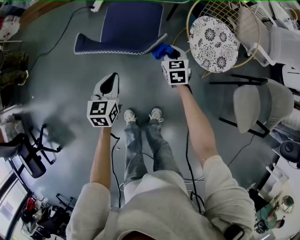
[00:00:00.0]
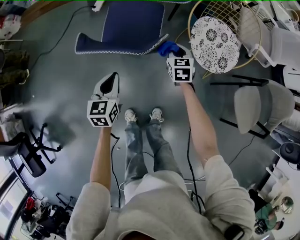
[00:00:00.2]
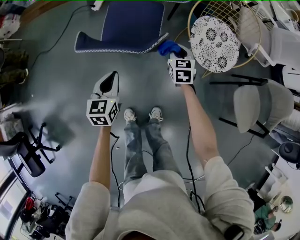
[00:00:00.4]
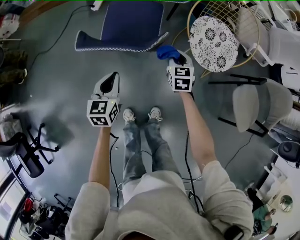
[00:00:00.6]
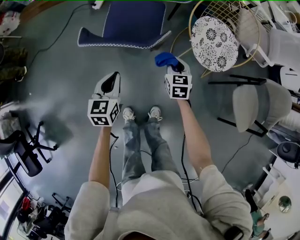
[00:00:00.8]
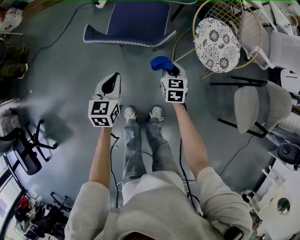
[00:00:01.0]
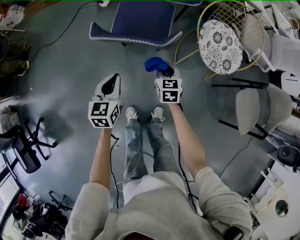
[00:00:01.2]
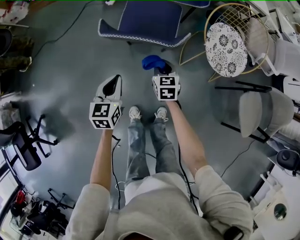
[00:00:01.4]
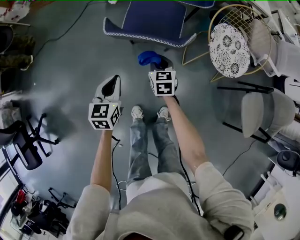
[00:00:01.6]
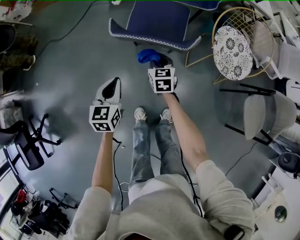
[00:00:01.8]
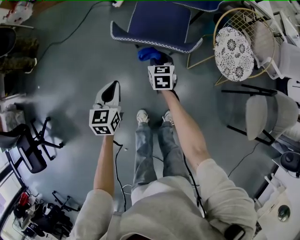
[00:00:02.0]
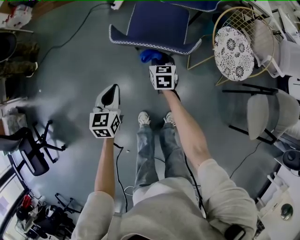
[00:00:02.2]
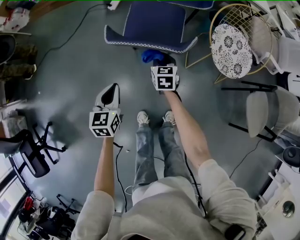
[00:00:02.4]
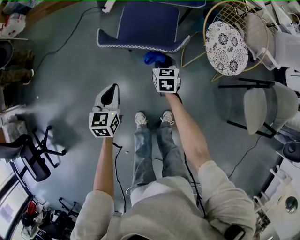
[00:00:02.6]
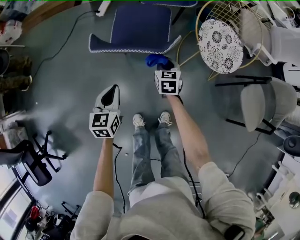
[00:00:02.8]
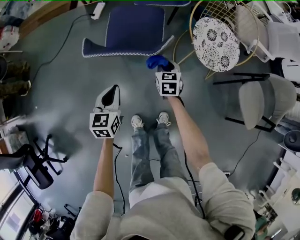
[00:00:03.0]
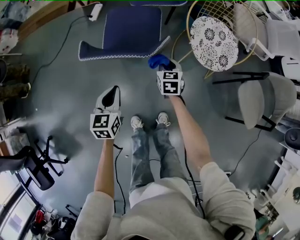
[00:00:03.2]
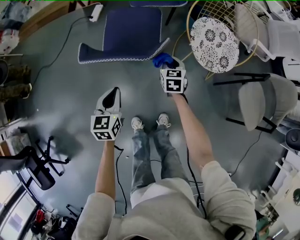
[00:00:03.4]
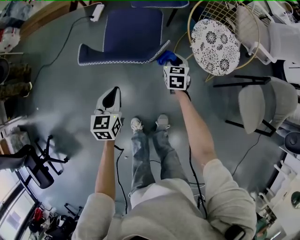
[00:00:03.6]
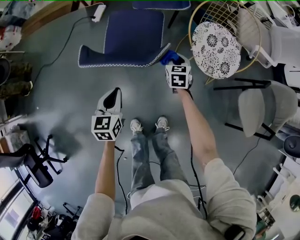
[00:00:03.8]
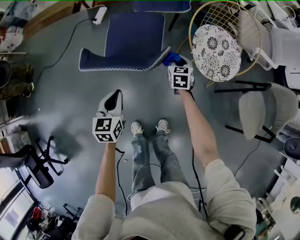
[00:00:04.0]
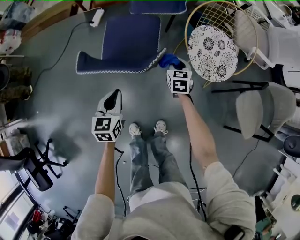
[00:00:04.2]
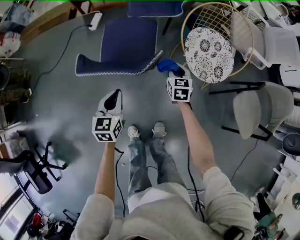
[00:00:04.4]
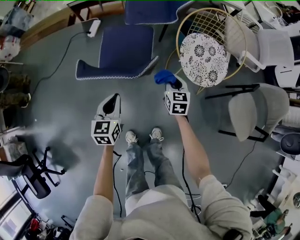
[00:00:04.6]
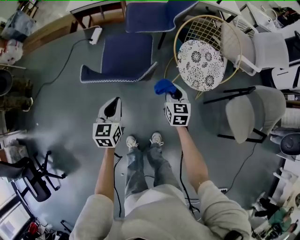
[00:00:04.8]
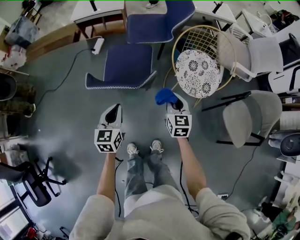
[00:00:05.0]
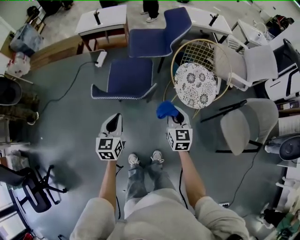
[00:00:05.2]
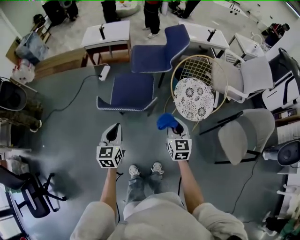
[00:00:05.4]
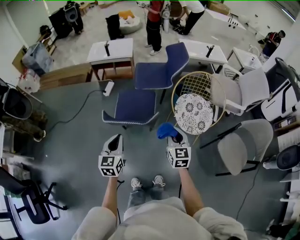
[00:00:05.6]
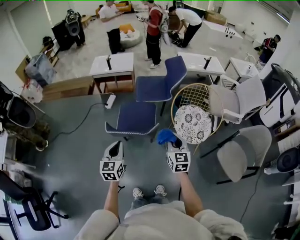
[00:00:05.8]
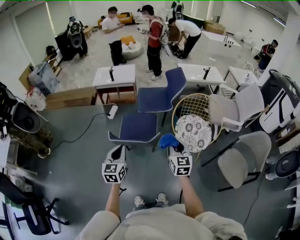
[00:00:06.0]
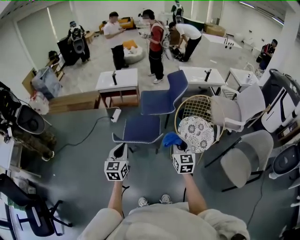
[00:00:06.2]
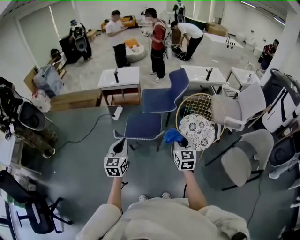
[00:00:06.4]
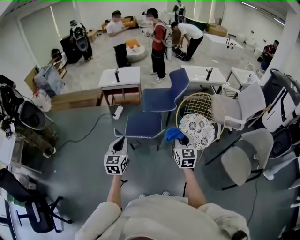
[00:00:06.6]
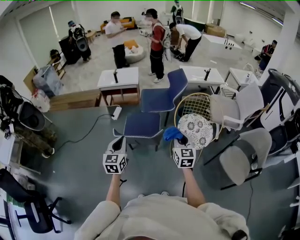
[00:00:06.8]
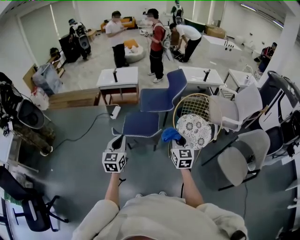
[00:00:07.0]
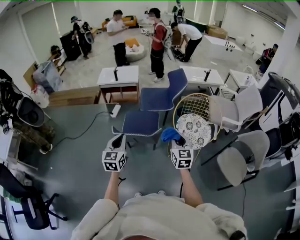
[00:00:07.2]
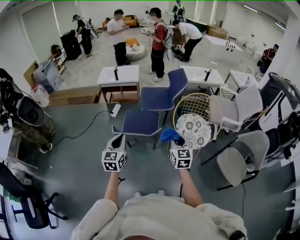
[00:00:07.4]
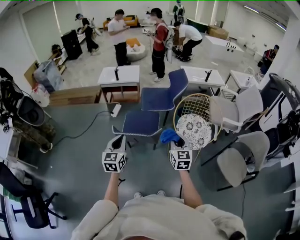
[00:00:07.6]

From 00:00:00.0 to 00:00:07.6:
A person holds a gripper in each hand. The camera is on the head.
From 00:00:00.0 to 00:00:01.6: The left gripper moves to the left and backward, about 15 cm. The right gripper moves to the left and backward, some 20 cm.
From 00:00:01.6 to 00:00:03.0: The left gripper is displaced to the right by approximately 5 cm. Meanwhile the right gripper moves to the right, approximately 10 cm.
From 00:00:03.0 to 00:00:04.6: The left gripper is displaced to the right by about 5 cm; the right gripper shifts approximately 10 cm to the right and upward.
From 00:00:04.6 to 00:00:06.0: The two grippers go roughly 25 cm upward. The right gripper turns by roughly 20 degrees.
From 00:00:06.0 to 00:00:07.6: There are only small adjustments of the grippers.

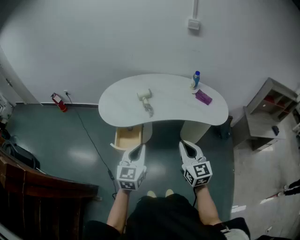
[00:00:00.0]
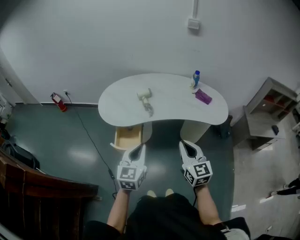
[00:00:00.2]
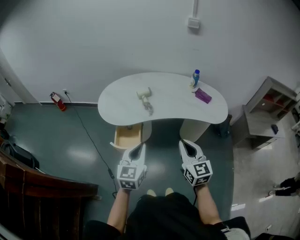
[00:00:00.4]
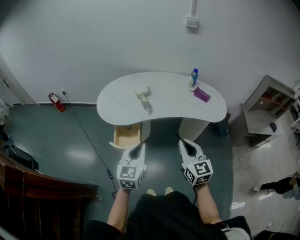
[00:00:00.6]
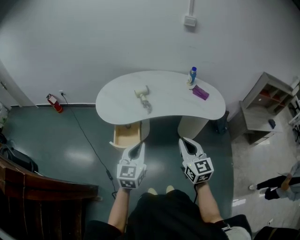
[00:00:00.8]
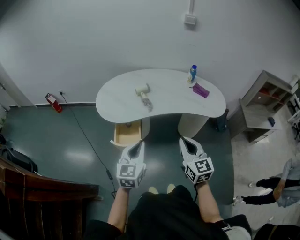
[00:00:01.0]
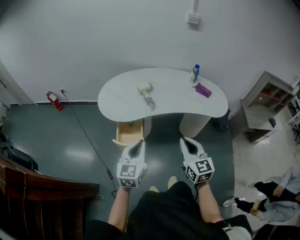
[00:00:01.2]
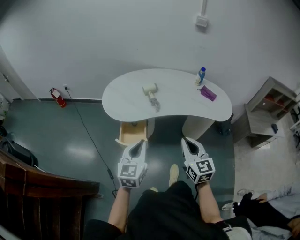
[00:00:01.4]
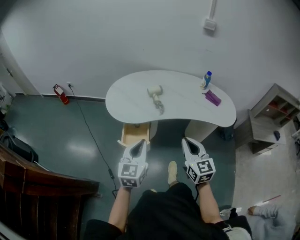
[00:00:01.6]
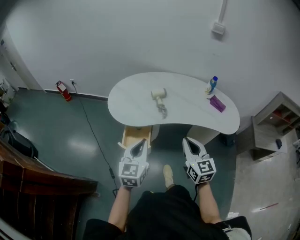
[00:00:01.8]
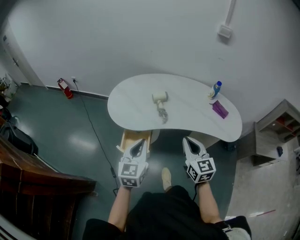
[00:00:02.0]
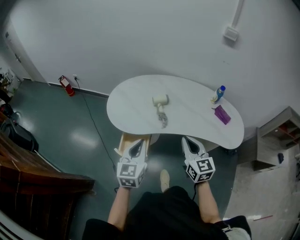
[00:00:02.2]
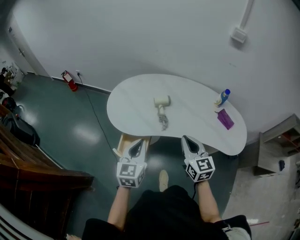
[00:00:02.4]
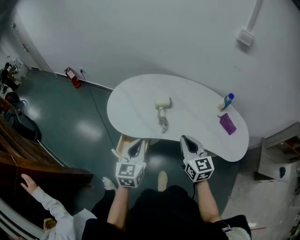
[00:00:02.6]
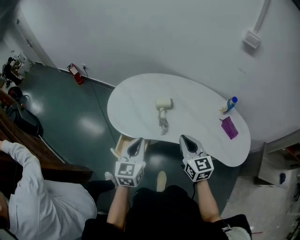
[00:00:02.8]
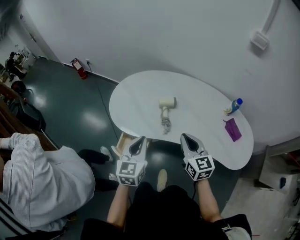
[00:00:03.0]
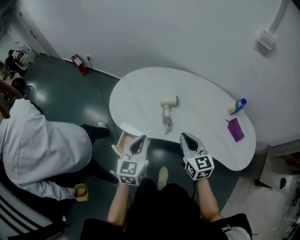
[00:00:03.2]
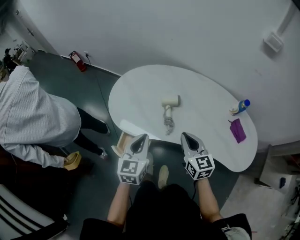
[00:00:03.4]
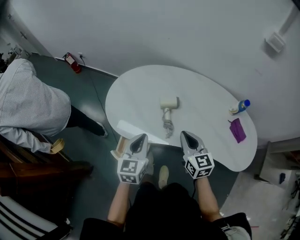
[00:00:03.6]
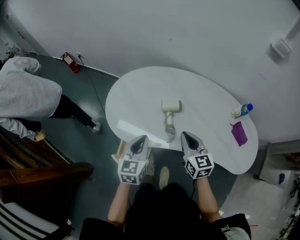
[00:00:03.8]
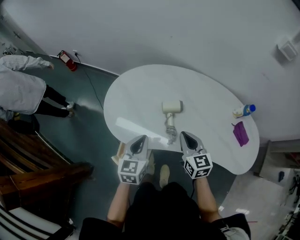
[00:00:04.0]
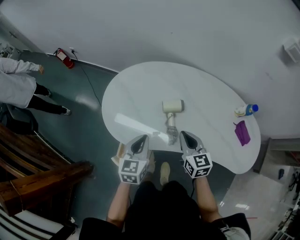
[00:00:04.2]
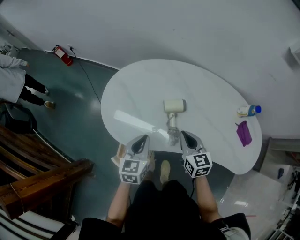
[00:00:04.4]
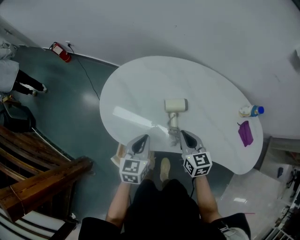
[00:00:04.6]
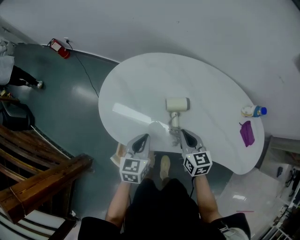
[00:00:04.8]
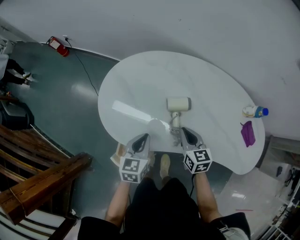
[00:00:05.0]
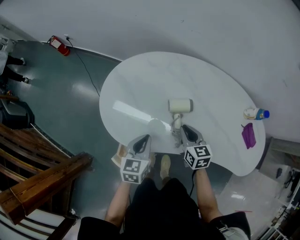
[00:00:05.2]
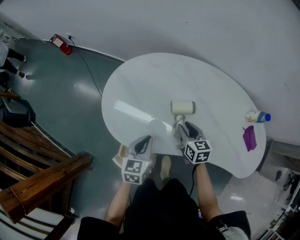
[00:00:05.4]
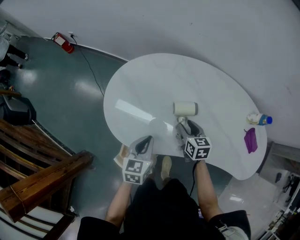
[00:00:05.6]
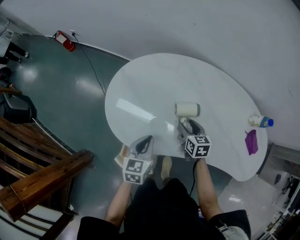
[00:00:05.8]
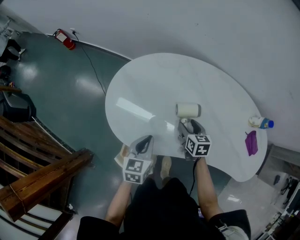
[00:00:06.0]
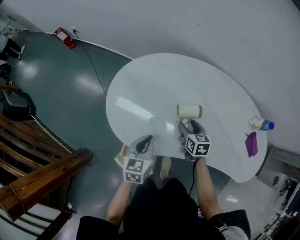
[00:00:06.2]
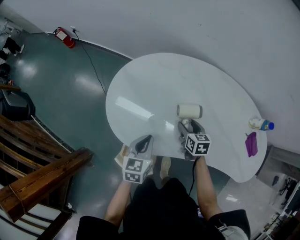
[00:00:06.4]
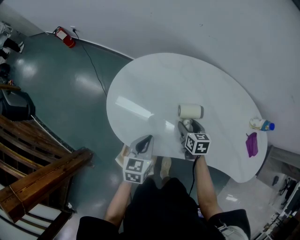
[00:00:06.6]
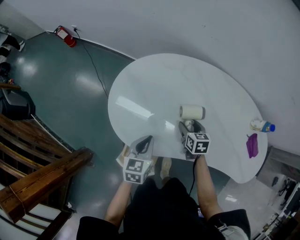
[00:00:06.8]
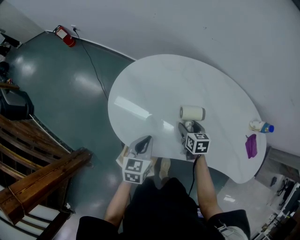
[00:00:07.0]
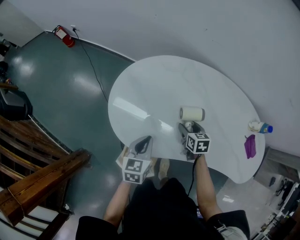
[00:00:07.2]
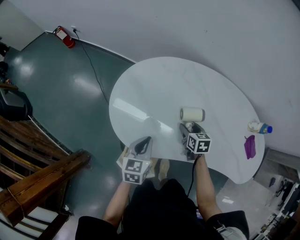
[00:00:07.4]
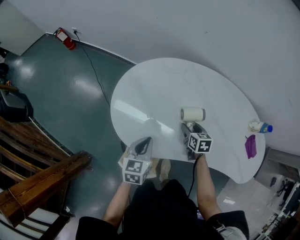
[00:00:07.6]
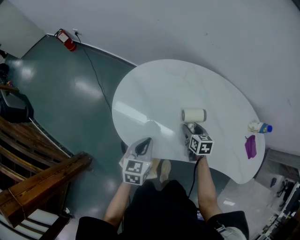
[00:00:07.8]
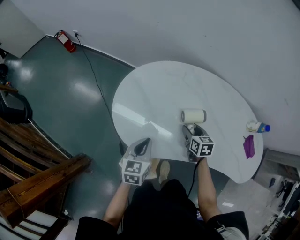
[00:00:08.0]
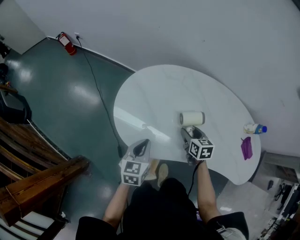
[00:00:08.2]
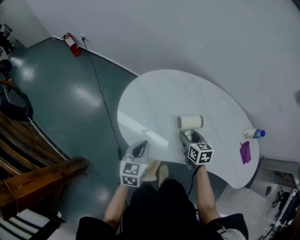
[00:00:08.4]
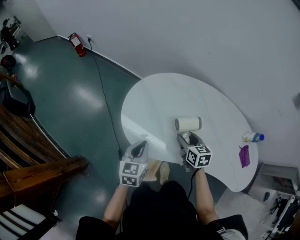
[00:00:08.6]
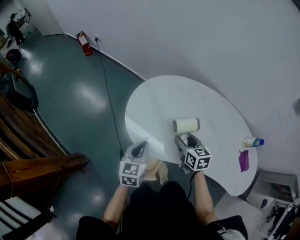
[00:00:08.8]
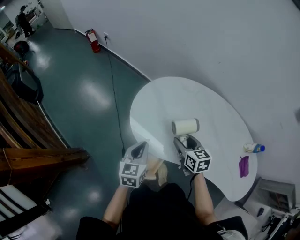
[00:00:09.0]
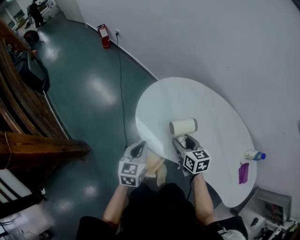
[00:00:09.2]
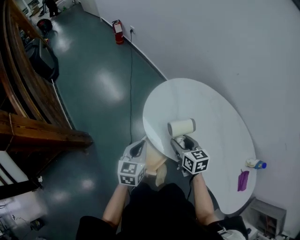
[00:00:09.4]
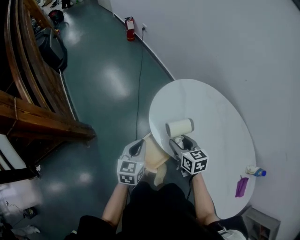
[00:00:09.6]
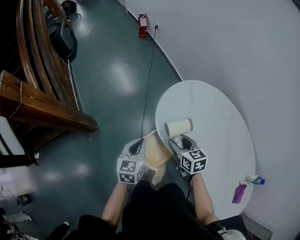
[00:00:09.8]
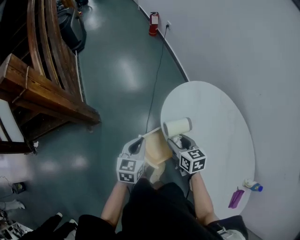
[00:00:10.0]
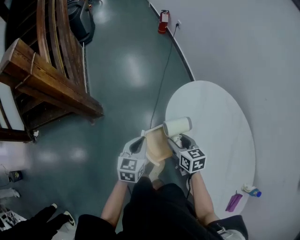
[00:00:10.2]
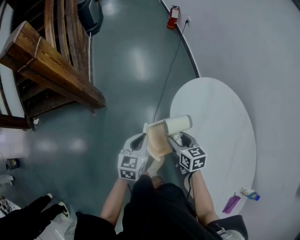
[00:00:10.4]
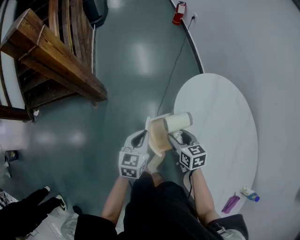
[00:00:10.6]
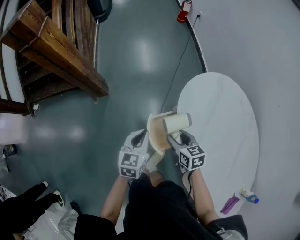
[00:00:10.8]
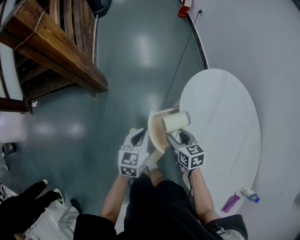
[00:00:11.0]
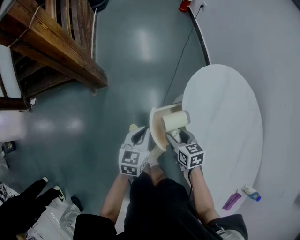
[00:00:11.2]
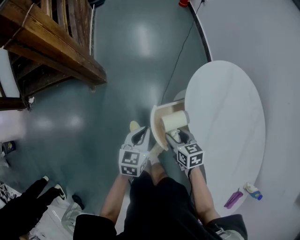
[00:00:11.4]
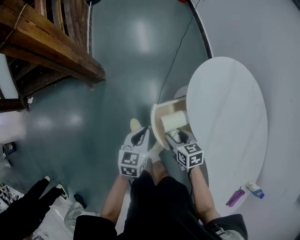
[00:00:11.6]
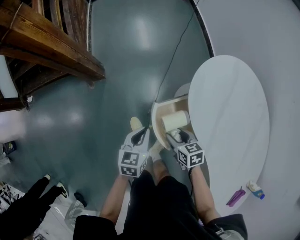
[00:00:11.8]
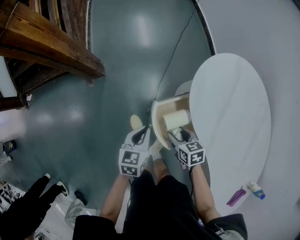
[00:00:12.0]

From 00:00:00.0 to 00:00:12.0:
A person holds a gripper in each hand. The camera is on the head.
From 00:00:00.0 to 00:00:01.6: The two grippers go some 10 cm to the left.
From 00:00:01.6 to 00:00:03.0: The grippers both shift forward by approximately 25 cm. The right gripper turns by some 20 degrees.
From 00:00:03.0 to 00:00:04.4: Both grippers travel together forward and downward, roughly 20 cm.
From 00:00:04.4 to 00:00:06.0: The left gripper goes some 5 cm downward. The right gripper heads downward and forward, covering roughly 15 cm, and opens its fingers.
From 00:00:06.0 to 00:00:07.6: The grippers make only small movements.
From 00:00:07.6 to 00:00:09.0: The left gripper moves to the left, upward and backward, about 10 cm. The right gripper travels upward and to the left by approximately 20 cm, and turns by approximately 20 degrees.
From 00:00:09.0 to 00:00:10.4: The right gripper changes place by roughly 20 cm, and swivels about 40 degrees, while the left gripper shifts by approximately 20 cm, and rotates about 40 degrees.
From 00:00:10.4 to 00:00:12.0: Both grippers travel together downward, some 15 cm.

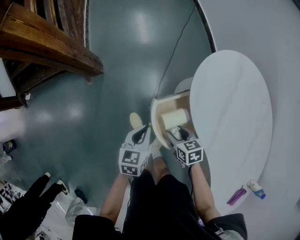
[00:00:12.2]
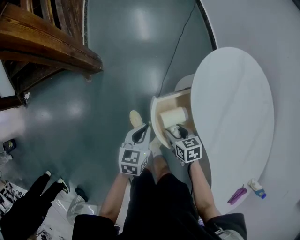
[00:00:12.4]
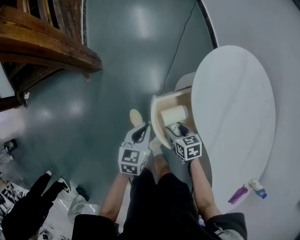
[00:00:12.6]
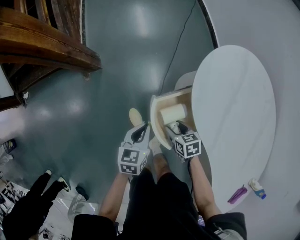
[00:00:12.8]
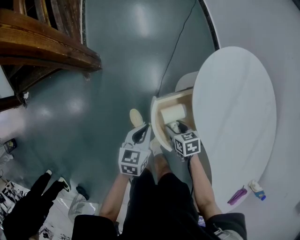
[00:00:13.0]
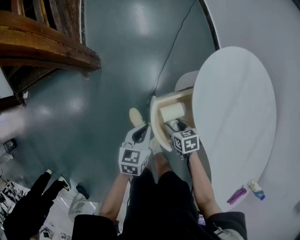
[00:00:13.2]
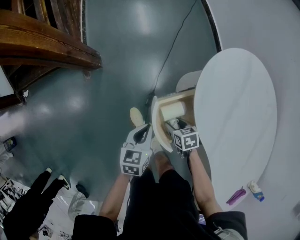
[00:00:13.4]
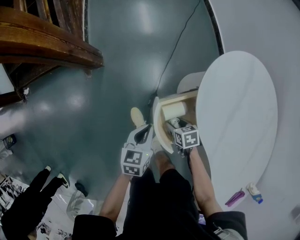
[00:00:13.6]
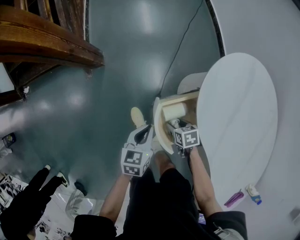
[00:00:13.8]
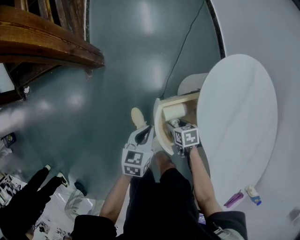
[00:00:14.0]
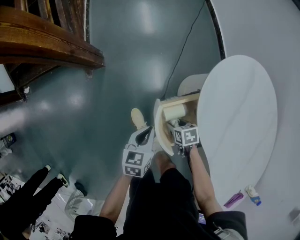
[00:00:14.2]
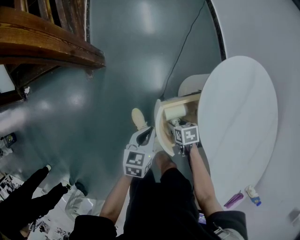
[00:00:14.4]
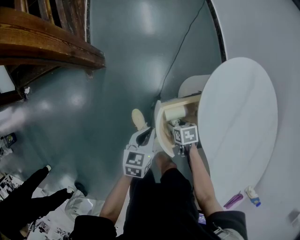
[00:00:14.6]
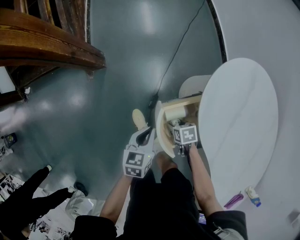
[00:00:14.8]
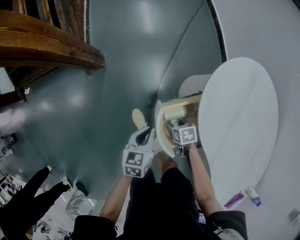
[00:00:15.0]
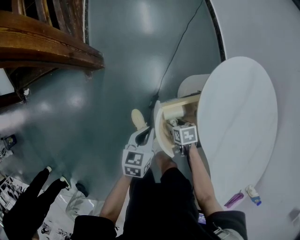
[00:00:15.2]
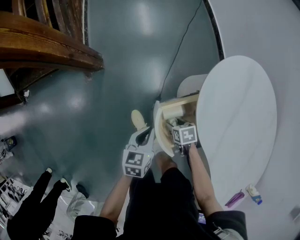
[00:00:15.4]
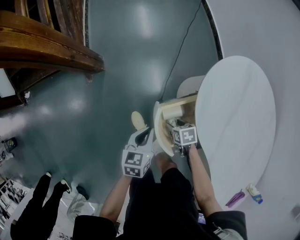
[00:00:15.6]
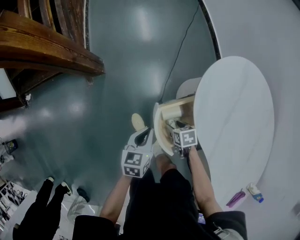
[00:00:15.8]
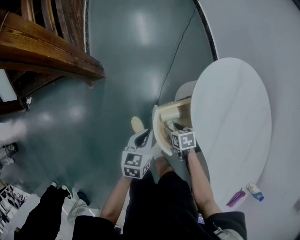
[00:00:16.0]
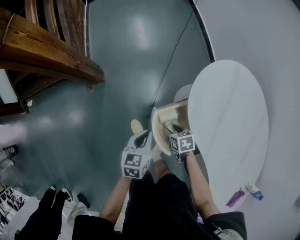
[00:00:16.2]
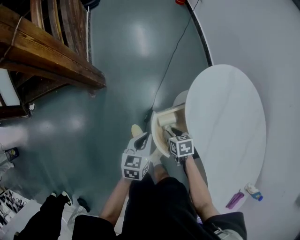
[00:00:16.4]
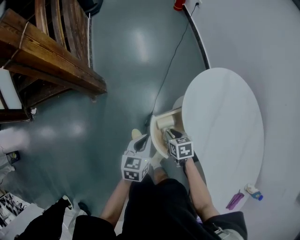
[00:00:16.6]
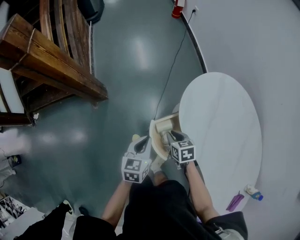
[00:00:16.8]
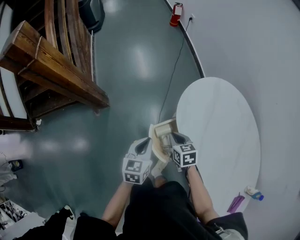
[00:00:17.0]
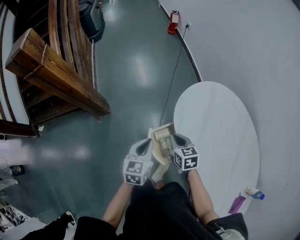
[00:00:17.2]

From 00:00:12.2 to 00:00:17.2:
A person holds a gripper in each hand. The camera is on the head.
From 00:00:12.2 to 00:00:13.8: The right gripper shifts some 10 cm downward.
From 00:00:13.8 to 00:00:15.6: There are only small adjustments of the grippers.
From 00:00:15.6 to 00:00:17.2: The grippers both shift upward by some 25 cm. The right gripper rotates approximately 40 degrees, and closes up.
